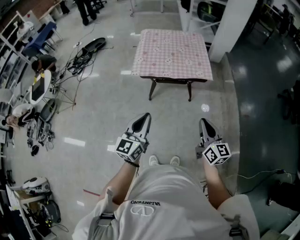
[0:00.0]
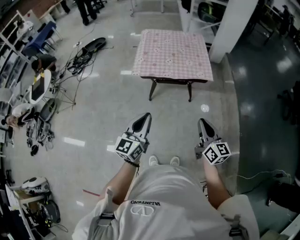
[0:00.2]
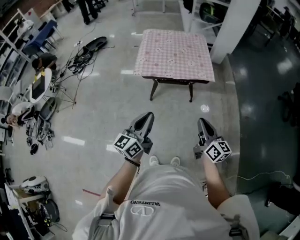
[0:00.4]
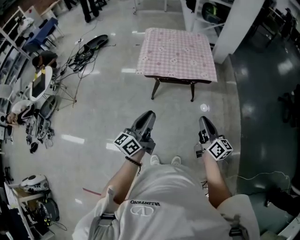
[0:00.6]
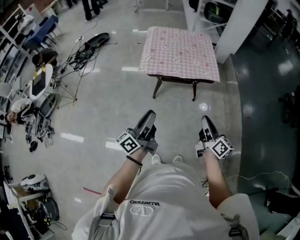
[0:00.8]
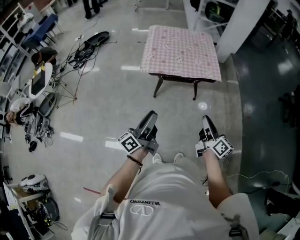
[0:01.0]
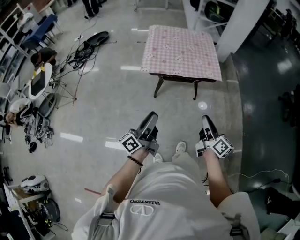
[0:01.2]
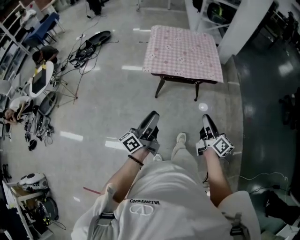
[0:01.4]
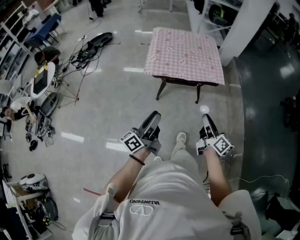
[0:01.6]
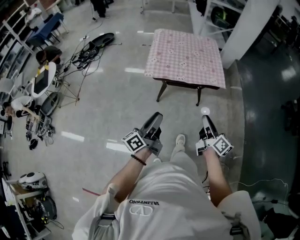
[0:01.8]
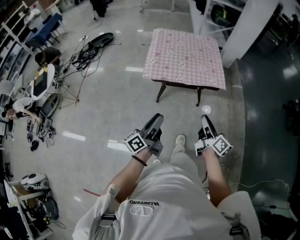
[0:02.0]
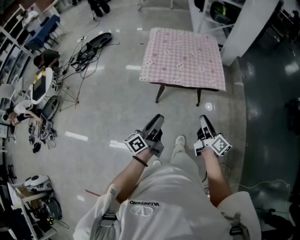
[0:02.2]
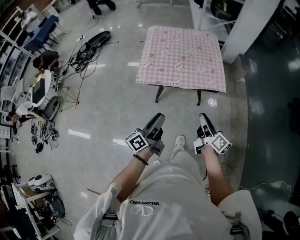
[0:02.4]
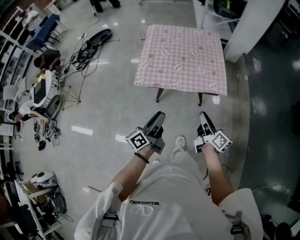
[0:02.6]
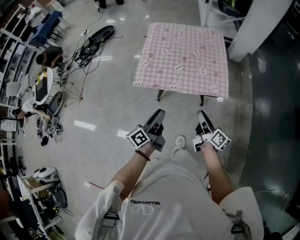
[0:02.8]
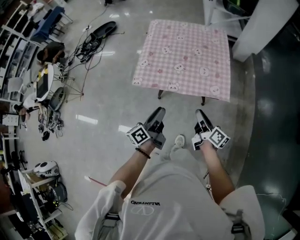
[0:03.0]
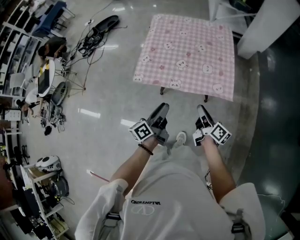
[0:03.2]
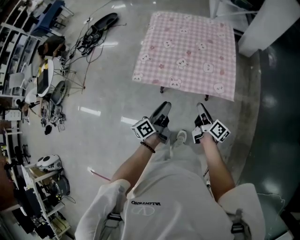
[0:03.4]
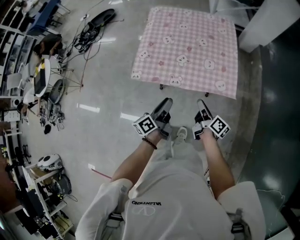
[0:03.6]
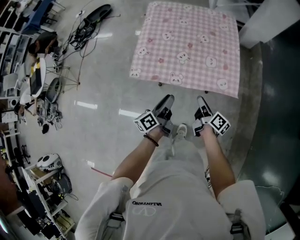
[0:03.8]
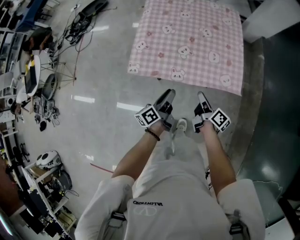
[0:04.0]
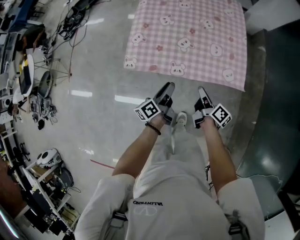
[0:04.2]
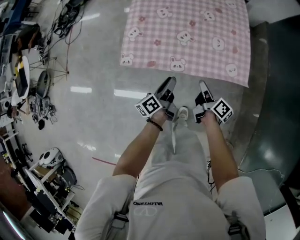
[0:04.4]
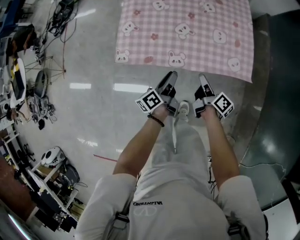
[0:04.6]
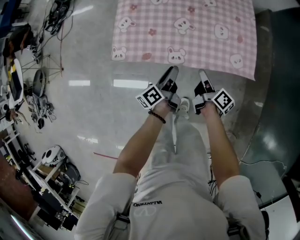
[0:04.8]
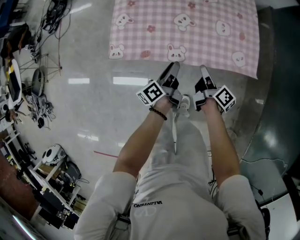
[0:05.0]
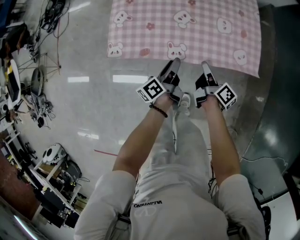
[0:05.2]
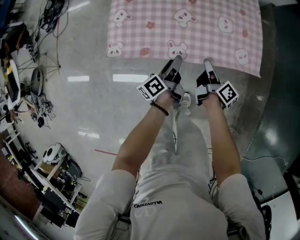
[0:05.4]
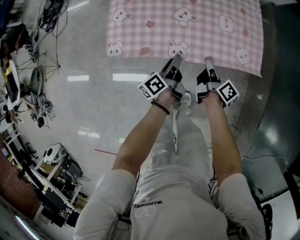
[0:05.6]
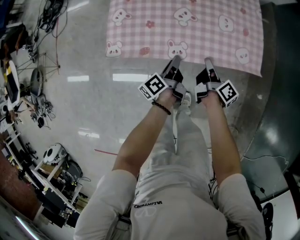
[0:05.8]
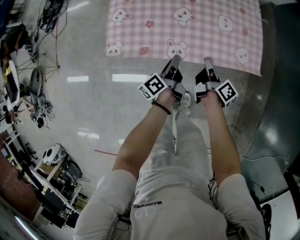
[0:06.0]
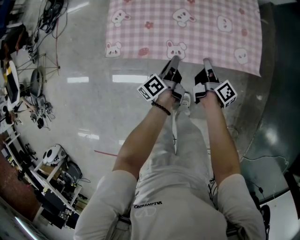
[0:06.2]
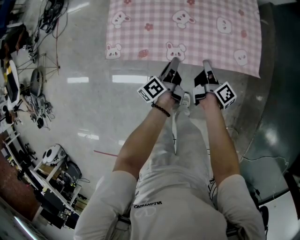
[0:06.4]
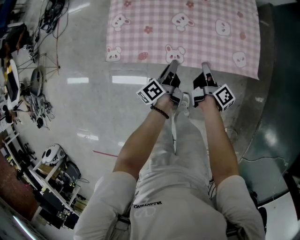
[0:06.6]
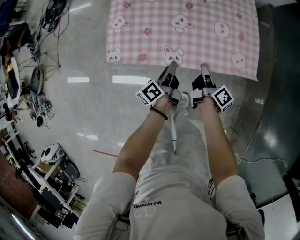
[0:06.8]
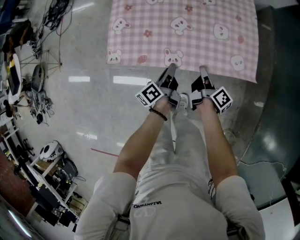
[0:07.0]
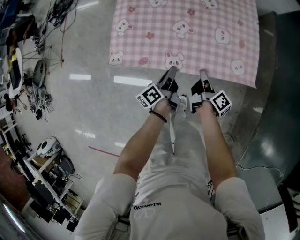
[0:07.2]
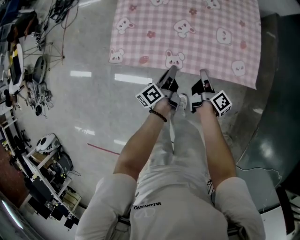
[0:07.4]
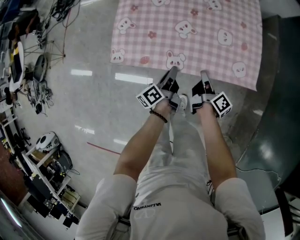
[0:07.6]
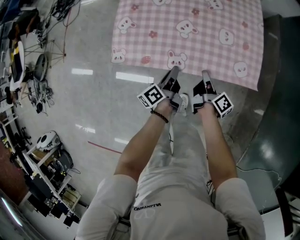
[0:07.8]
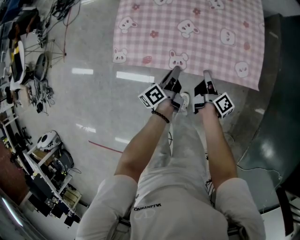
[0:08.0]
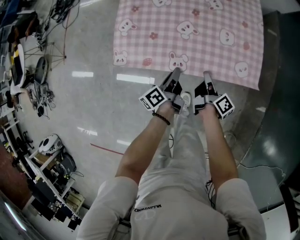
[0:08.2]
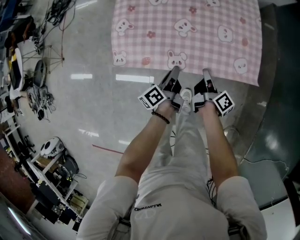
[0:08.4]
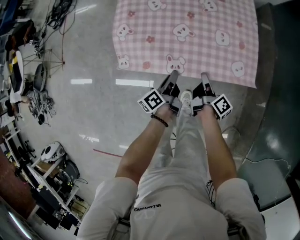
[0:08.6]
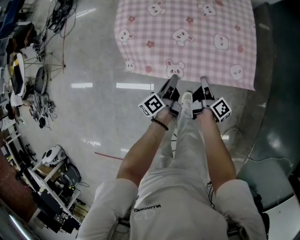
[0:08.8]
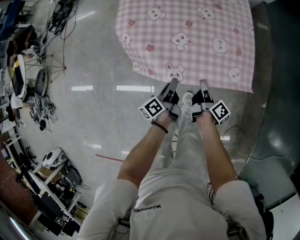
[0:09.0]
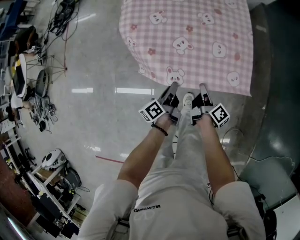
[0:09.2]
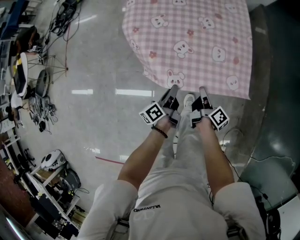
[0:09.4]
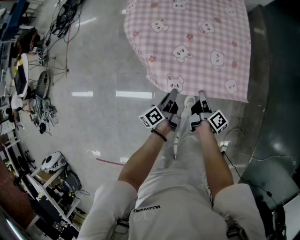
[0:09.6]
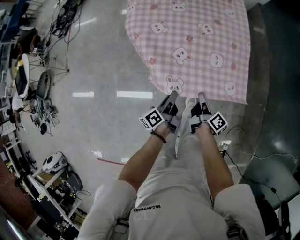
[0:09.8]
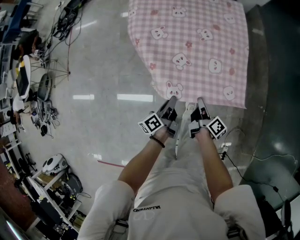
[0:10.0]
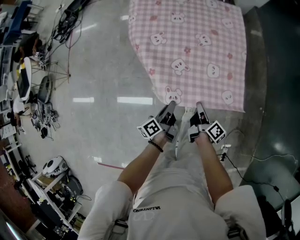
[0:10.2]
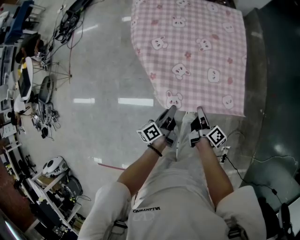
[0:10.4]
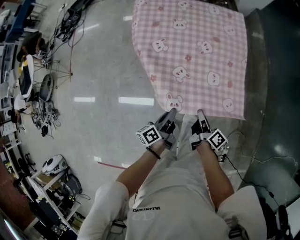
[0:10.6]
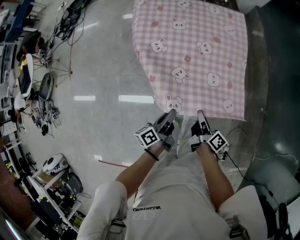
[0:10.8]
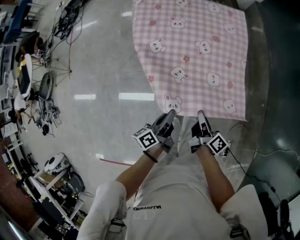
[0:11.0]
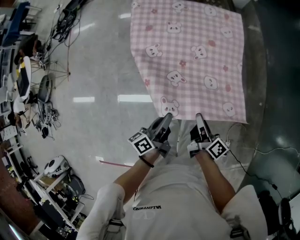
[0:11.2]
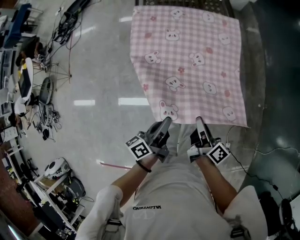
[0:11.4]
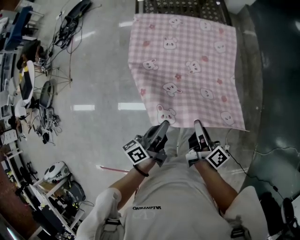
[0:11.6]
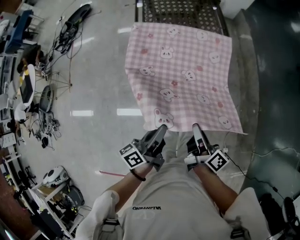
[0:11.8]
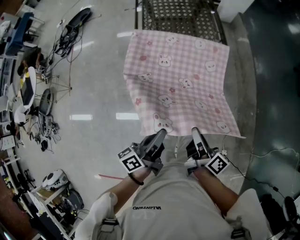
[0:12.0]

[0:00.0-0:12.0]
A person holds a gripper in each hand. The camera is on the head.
0:00.0 to 0:01.6: The left gripper shifts by some 10 cm, twists roughly 50 degrees counterclockwise, seen from behind, and opens.
0:01.6 to 0:03.0: The left gripper moves roughly 30 cm.
0:03.0 to 0:04.4: The left gripper moves downward, approximately 20 cm.
0:04.4 to 0:06.0: The left gripper travels downward by approximately 10 cm, and closes its fingers.
0:09.0 to 0:10.4: The left gripper shifts some 10 cm upward.
0:10.4 to 0:12.0: The left gripper goes about 20 cm upward.

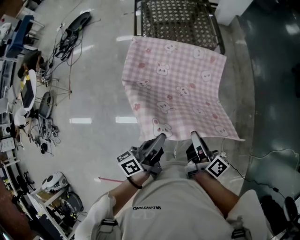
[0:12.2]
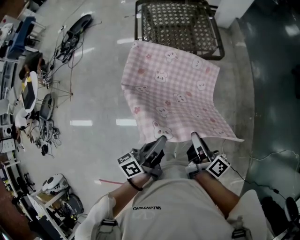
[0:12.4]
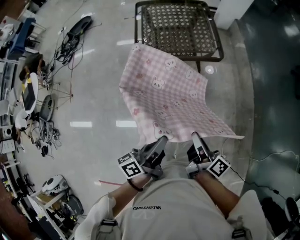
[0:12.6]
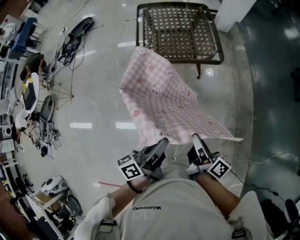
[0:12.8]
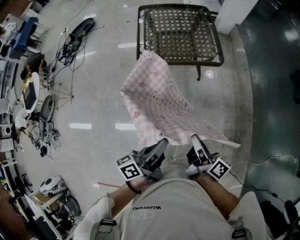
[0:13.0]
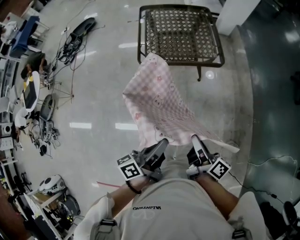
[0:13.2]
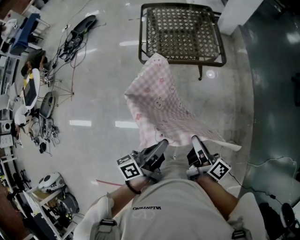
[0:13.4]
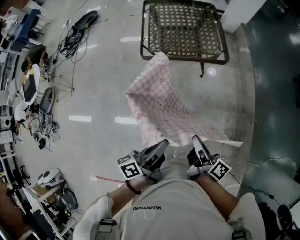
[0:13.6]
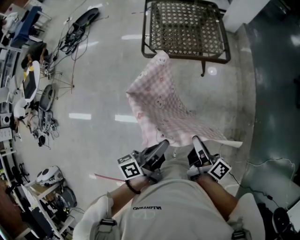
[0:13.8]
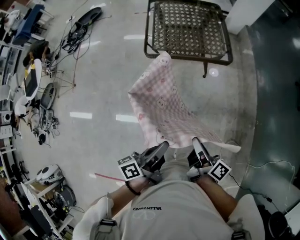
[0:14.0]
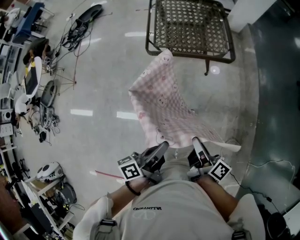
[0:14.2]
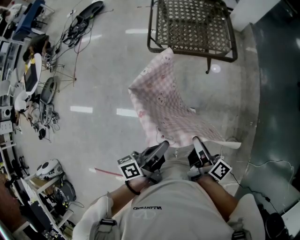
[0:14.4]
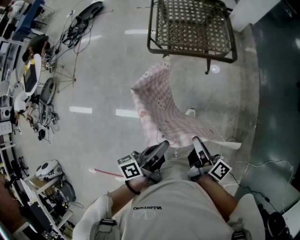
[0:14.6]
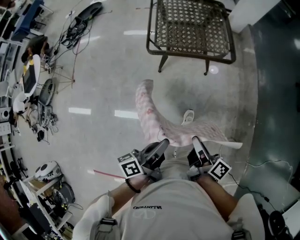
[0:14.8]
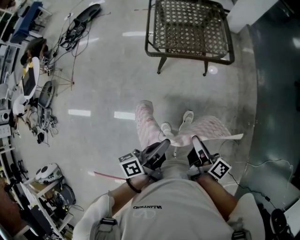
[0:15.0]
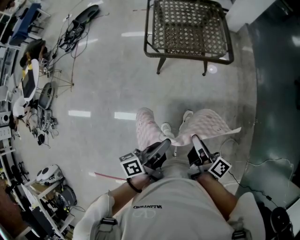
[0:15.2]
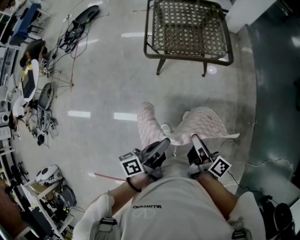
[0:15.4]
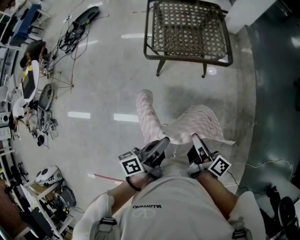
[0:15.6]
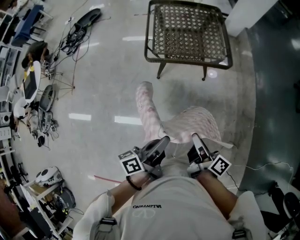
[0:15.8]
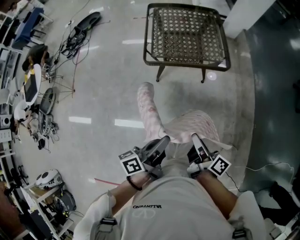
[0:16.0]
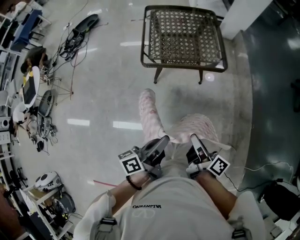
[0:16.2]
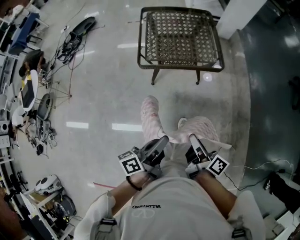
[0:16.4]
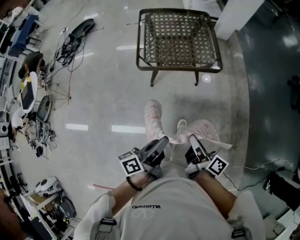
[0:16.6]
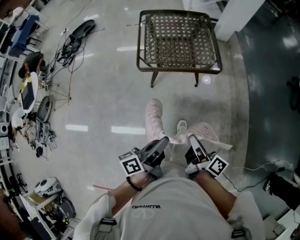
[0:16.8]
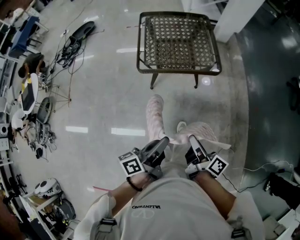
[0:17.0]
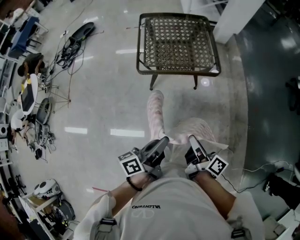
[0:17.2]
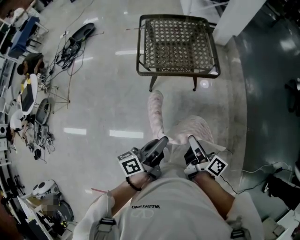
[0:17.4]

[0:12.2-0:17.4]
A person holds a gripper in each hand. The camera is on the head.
0:15.6 to 0:17.4: The left gripper changes place by roughly 5 cm.

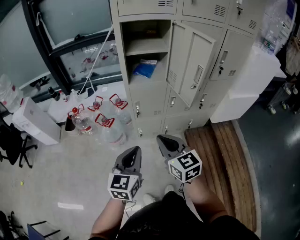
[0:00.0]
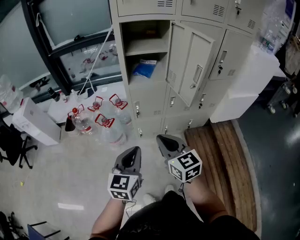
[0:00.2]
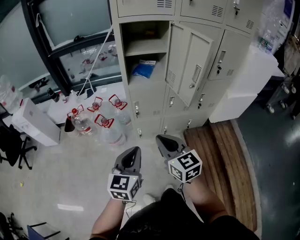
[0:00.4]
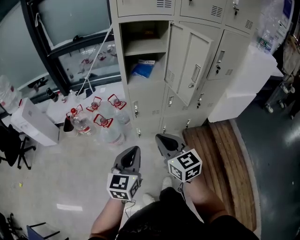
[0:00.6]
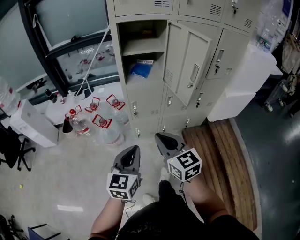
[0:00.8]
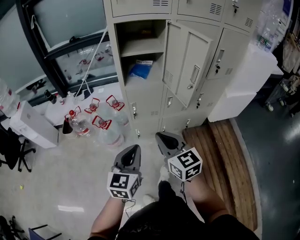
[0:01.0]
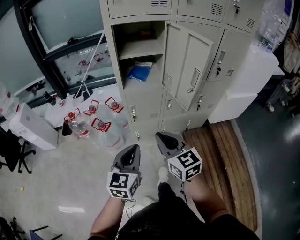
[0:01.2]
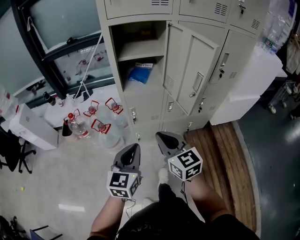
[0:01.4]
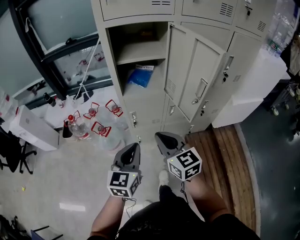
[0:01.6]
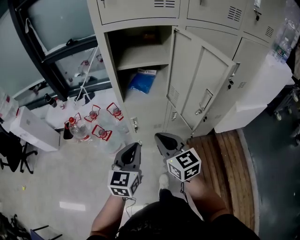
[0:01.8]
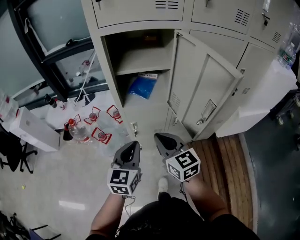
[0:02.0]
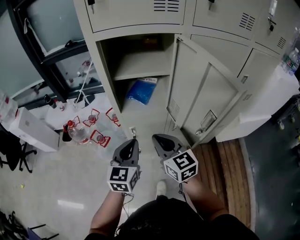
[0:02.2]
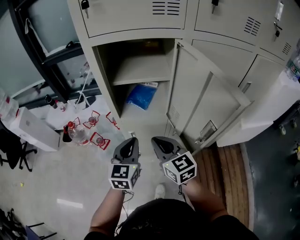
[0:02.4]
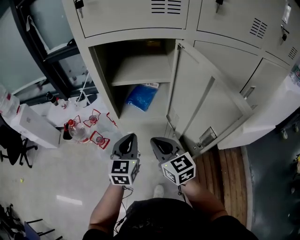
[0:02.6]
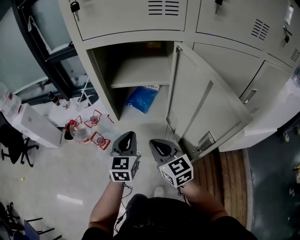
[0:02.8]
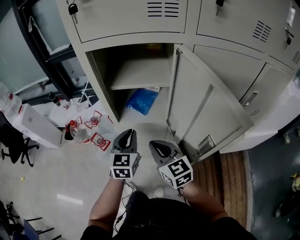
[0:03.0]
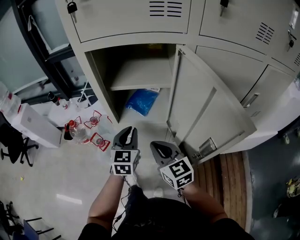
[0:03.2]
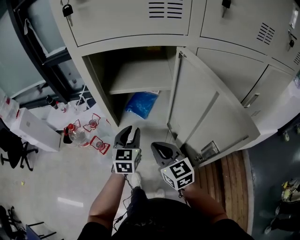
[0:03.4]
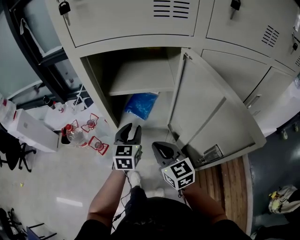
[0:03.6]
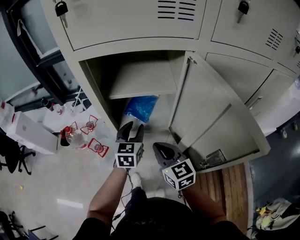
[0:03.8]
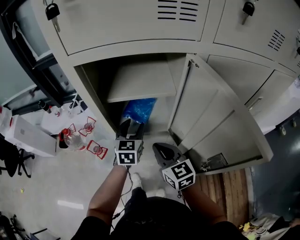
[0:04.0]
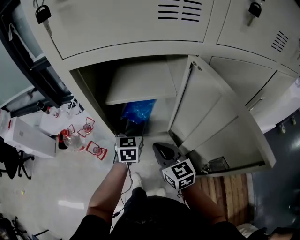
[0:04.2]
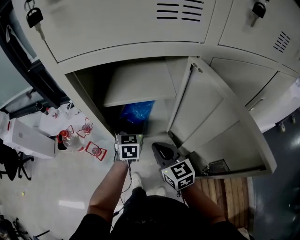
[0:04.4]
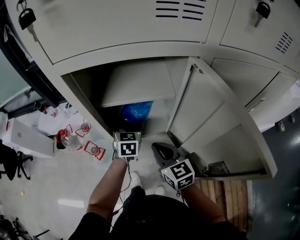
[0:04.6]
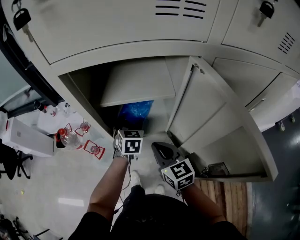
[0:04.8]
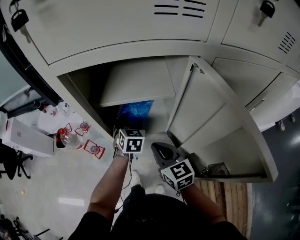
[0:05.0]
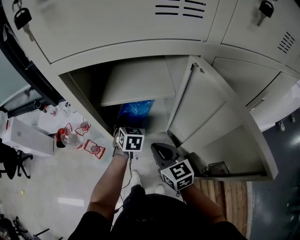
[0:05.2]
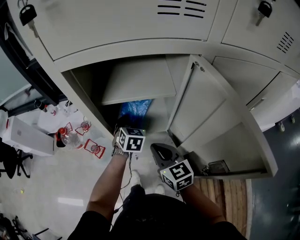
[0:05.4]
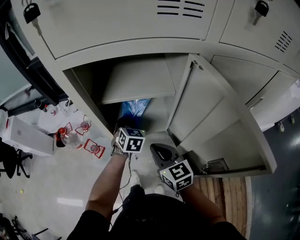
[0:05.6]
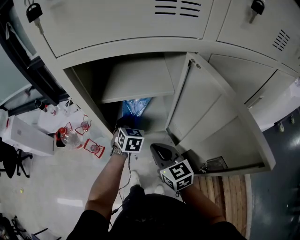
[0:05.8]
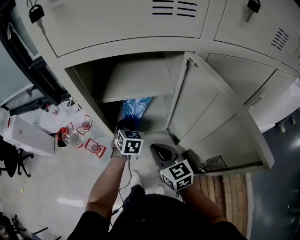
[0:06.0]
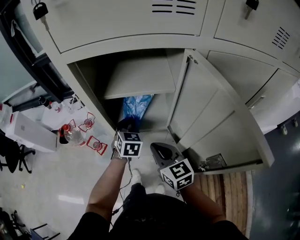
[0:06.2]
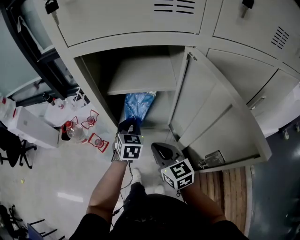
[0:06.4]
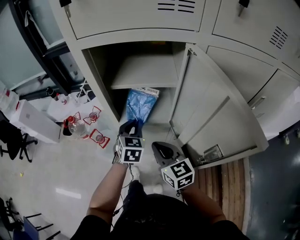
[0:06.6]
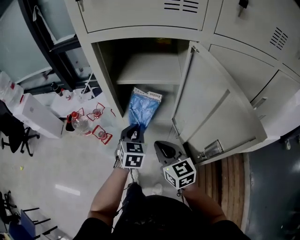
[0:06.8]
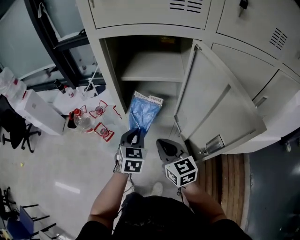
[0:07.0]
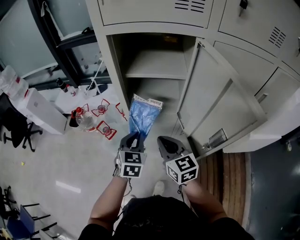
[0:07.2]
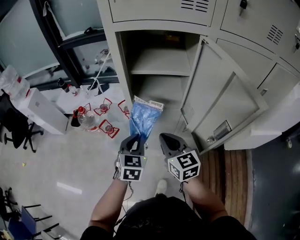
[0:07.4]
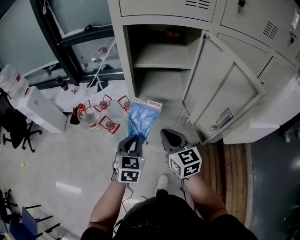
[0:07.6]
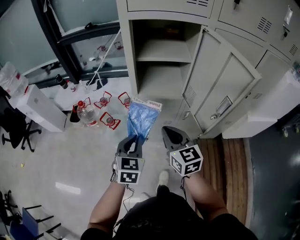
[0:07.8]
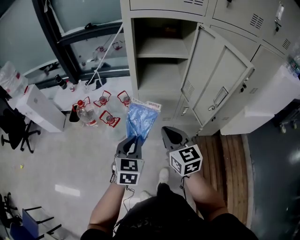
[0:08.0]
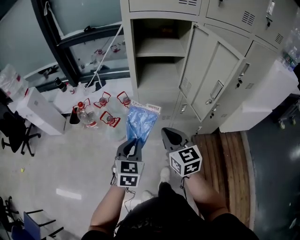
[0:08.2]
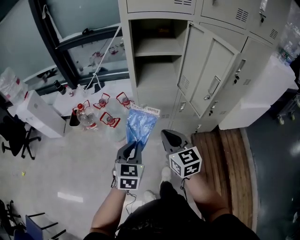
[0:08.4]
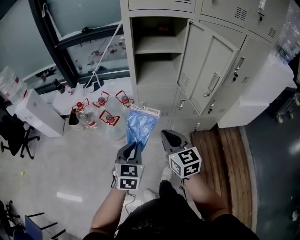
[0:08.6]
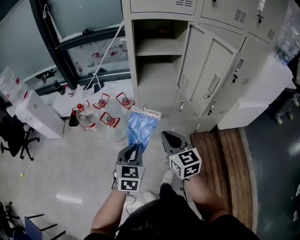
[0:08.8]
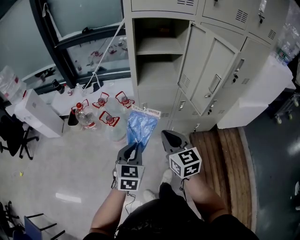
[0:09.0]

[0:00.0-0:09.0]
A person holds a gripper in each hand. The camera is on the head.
0:00.0 to 0:01.6: The two grippers go about 10 cm forward.
0:01.6 to 0:03.0: Both grippers move forward, roughly 20 cm.
0:03.0 to 0:04.4: The left gripper travels forward by roughly 15 cm, and opens its fingers; the right gripper travels forward by about 10 cm.
0:04.4 to 0:06.0: The left gripper closes.
0:06.0 to 0:07.6: The left gripper moves backward and to the left, about 30 cm; the right gripper is displaced backward and to the left by roughly 10 cm.
0:07.6 to 0:09.0: The grippers both shift backward by approximately 15 cm.
